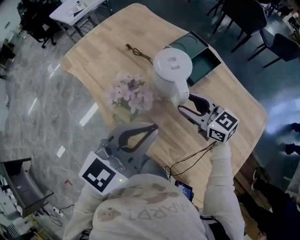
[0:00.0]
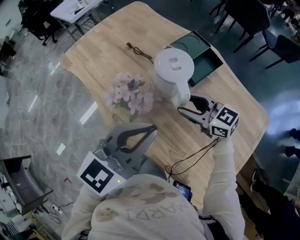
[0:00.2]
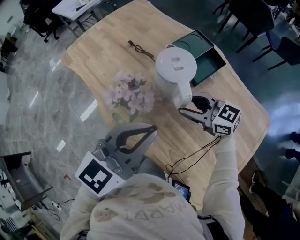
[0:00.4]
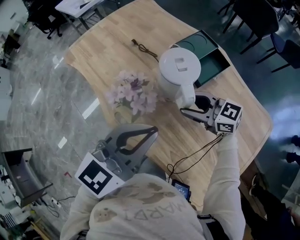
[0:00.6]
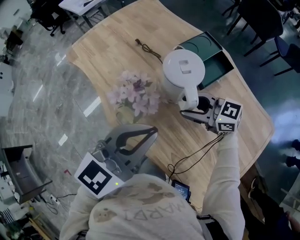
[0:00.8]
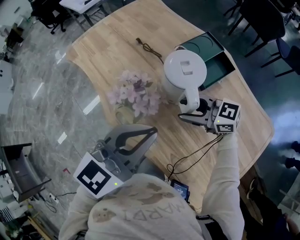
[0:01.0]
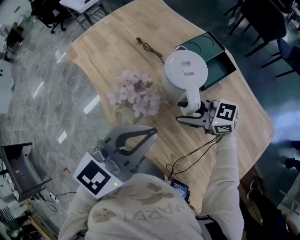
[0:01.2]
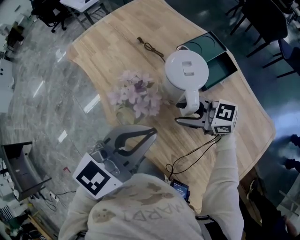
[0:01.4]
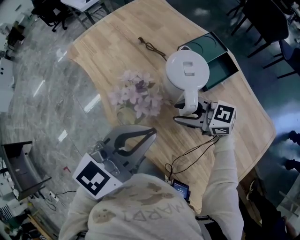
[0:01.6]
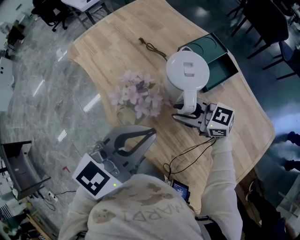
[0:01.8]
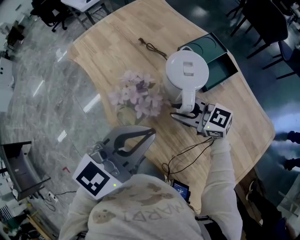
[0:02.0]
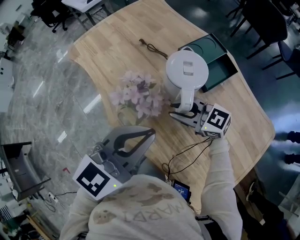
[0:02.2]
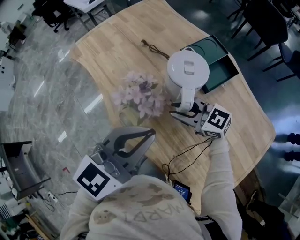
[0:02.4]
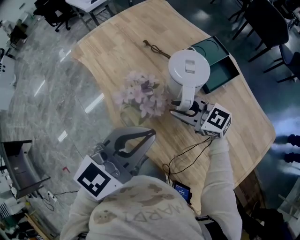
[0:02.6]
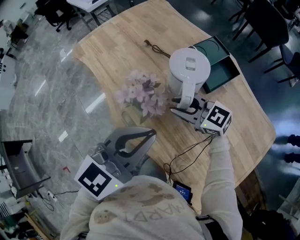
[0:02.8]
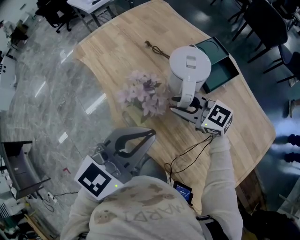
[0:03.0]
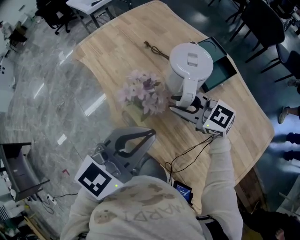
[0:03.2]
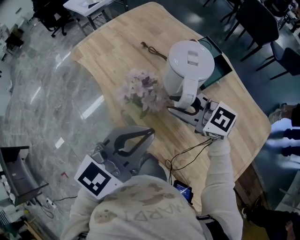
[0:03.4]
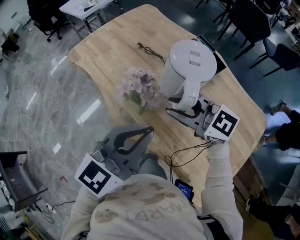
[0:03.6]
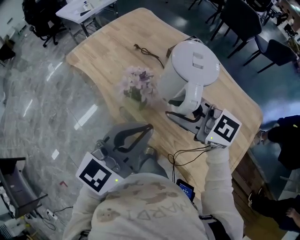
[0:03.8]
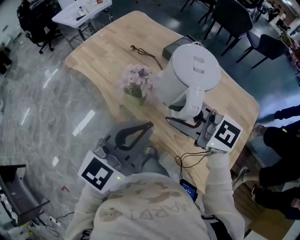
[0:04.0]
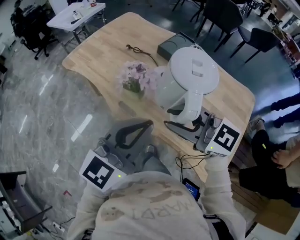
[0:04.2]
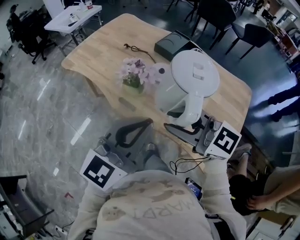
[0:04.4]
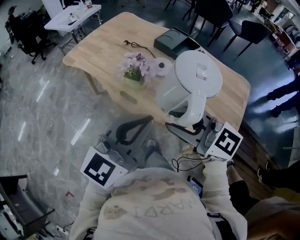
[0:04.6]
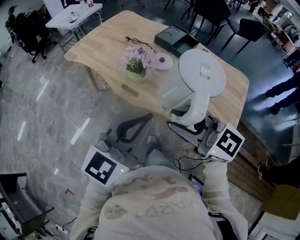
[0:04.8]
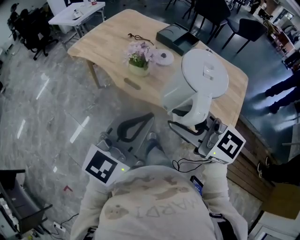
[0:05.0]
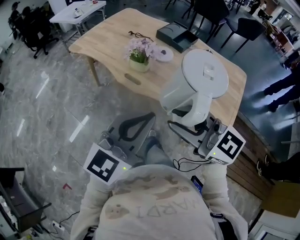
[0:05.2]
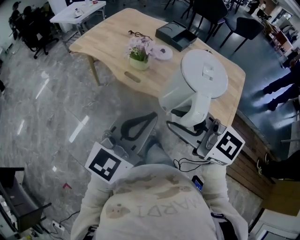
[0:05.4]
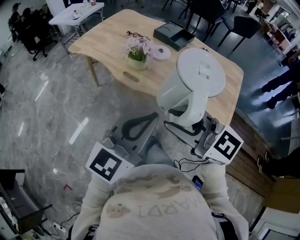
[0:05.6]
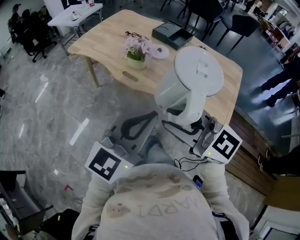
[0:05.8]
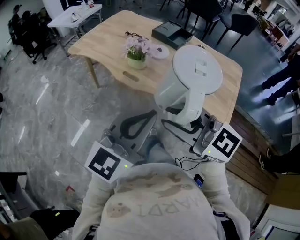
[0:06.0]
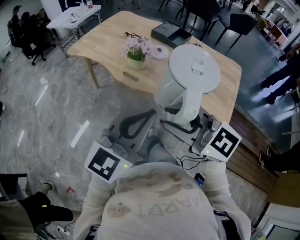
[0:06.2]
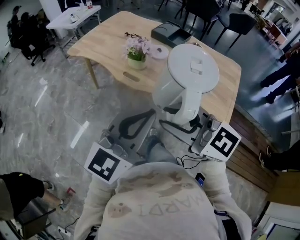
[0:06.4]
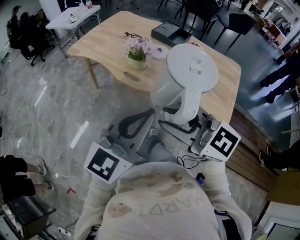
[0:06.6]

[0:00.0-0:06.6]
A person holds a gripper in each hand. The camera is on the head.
0:00.0 to 0:01.6: The right gripper changes place by some 5 cm, and changes its angle by about 30 degrees.
0:01.6 to 0:03.2: The right gripper moves upward, some 5 cm.
0:03.2 to 0:05.0: The right gripper travels backward by some 40 cm, and swivels roughly 20 degrees. Meanwhile the left gripper is displaced backward and to the left by about 30 cm.
0:05.0 to 0:06.6: The left gripper heads backward, covering roughly 5 cm. Meanwhile the right gripper is displaced backward and to the left by approximately 10 cm.

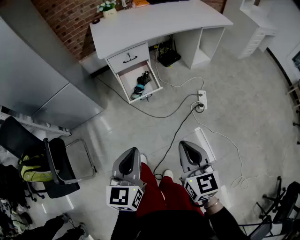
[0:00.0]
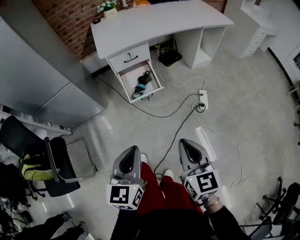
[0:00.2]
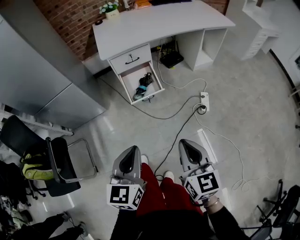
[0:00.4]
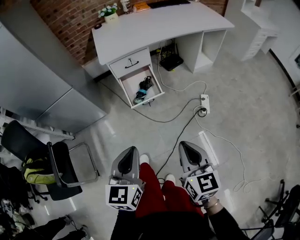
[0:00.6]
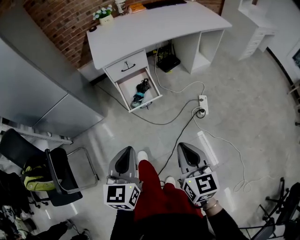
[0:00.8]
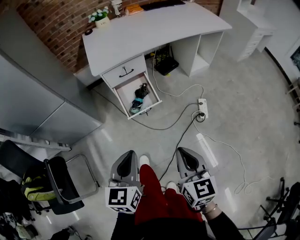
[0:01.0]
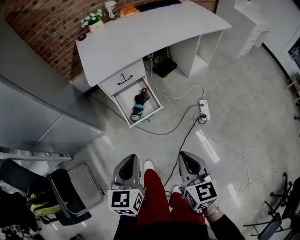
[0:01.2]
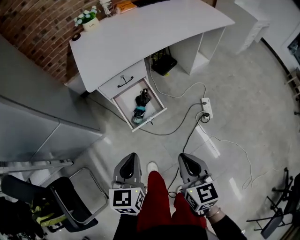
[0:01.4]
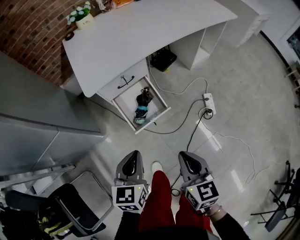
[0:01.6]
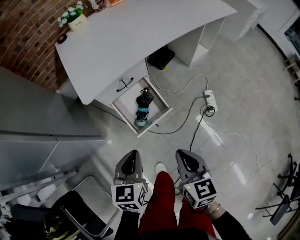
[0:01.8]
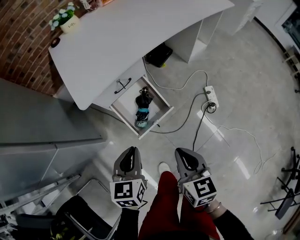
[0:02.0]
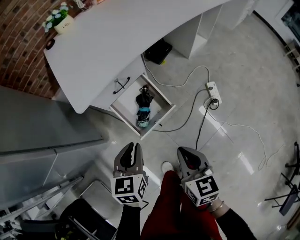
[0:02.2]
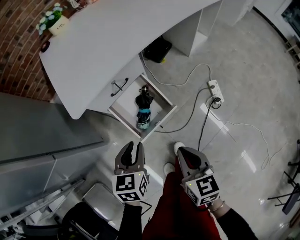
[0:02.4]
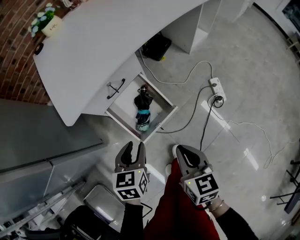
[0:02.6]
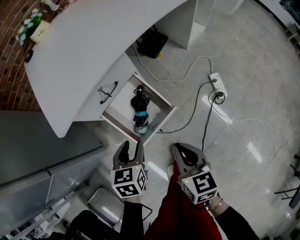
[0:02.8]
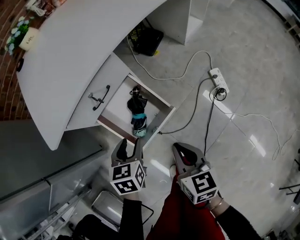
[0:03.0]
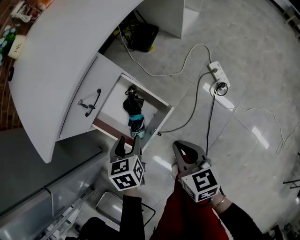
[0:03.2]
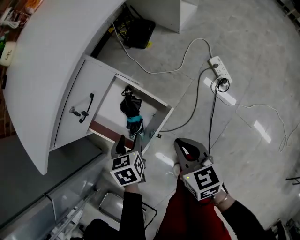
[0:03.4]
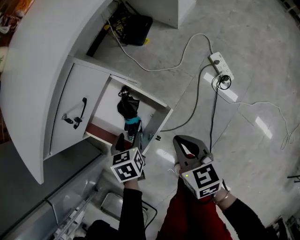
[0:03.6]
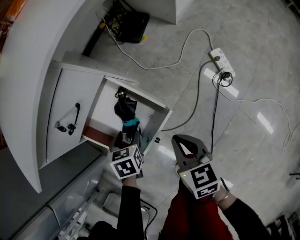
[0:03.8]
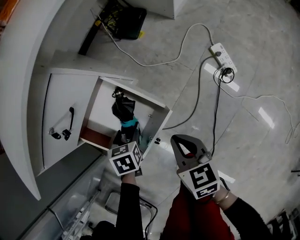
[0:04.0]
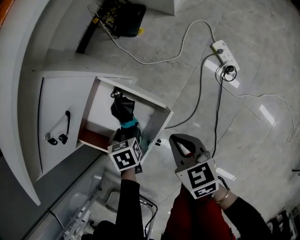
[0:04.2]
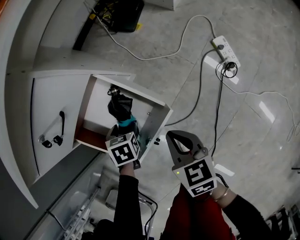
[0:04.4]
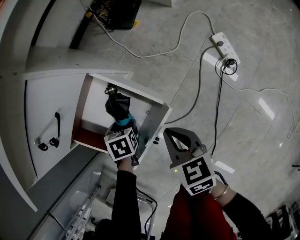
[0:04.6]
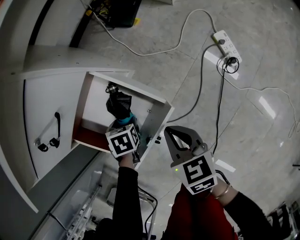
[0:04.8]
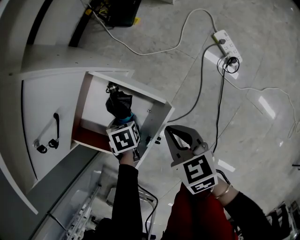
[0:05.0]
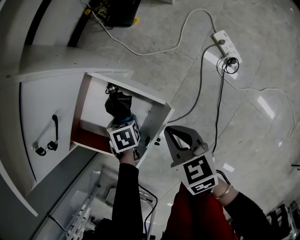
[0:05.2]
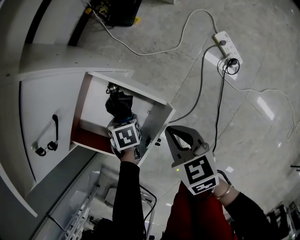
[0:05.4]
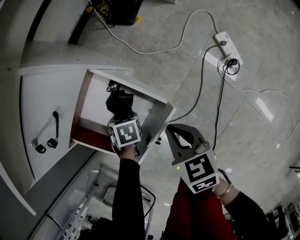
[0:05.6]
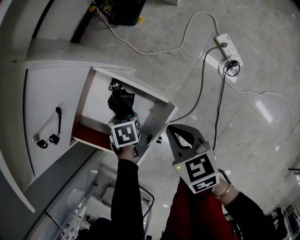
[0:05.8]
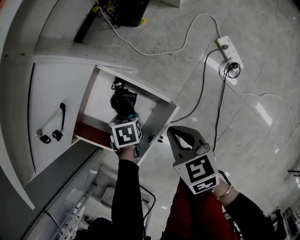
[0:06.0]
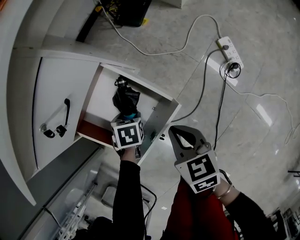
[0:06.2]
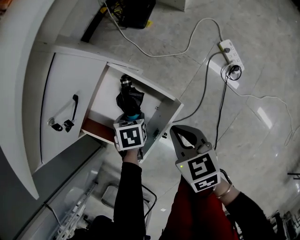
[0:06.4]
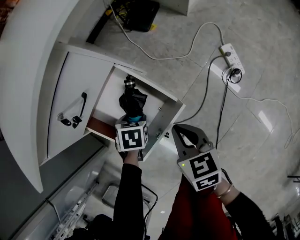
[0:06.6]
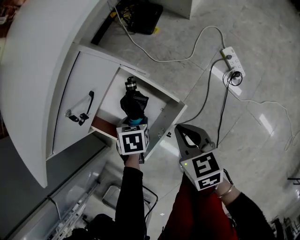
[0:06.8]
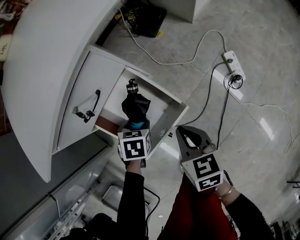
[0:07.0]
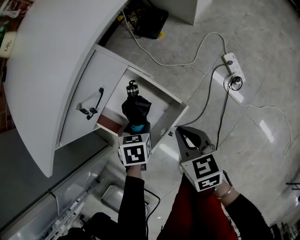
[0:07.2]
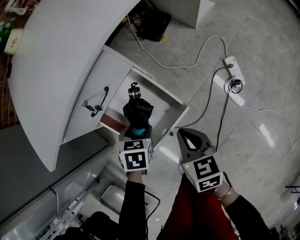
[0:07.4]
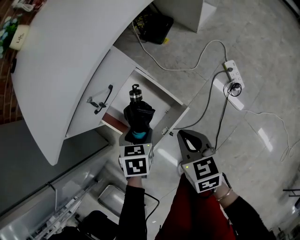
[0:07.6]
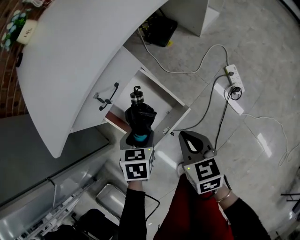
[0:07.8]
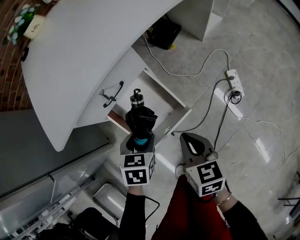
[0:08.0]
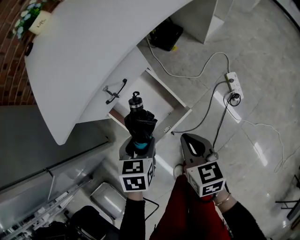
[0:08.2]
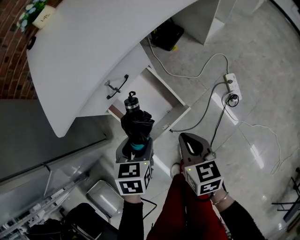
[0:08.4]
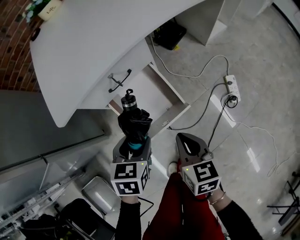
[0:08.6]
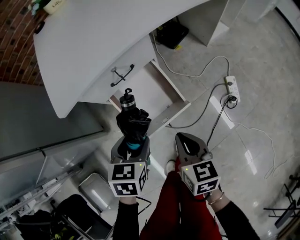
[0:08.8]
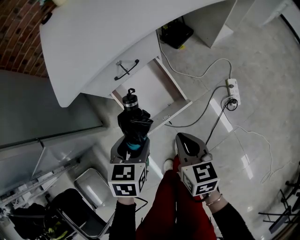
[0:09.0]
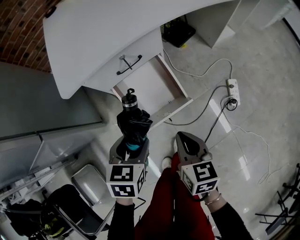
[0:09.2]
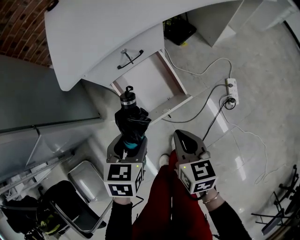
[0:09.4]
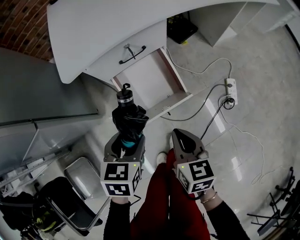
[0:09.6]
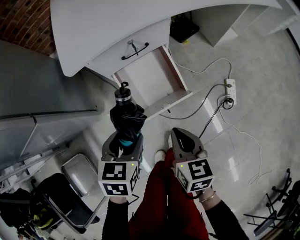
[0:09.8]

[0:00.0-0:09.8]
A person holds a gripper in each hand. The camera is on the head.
0:00.0 to 0:01.4: Both grippers move forward, approximately 20 cm.
0:01.4 to 0:02.8: The grippers both shift downward and forward by about 30 cm. The left gripper rotates some 20 degrees, and opens.
0:02.8 to 0:04.2: Both grippers move downward and forward, some 25 cm. The left gripper changes its angle by some 30 degrees.
0:04.2 to 0:05.6: The left gripper moves downward, roughly 10 cm.
0:05.6 to 0:07.0: The left gripper shifts approximately 15 cm upward; the right gripper goes some 5 cm upward.
0:07.0 to 0:08.4: The right gripper shifts about 10 cm upward. Meanwhile the left gripper is displaced upward and backward by roughly 20 cm.
0:08.4 to 0:09.8: Both grippers travel together backward and to the left, some 10 cm.

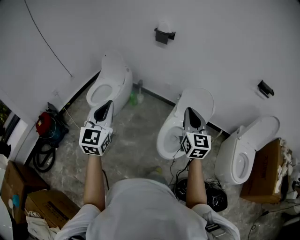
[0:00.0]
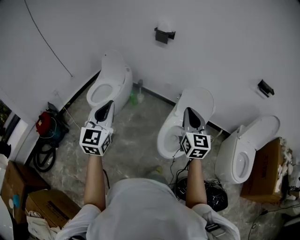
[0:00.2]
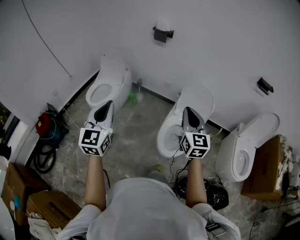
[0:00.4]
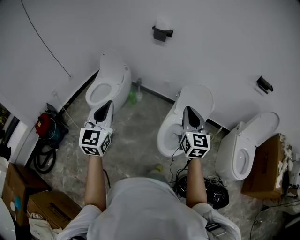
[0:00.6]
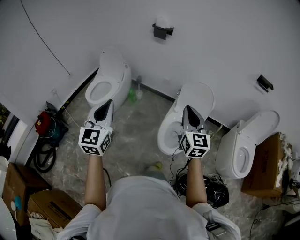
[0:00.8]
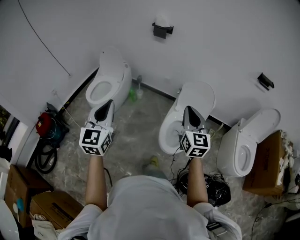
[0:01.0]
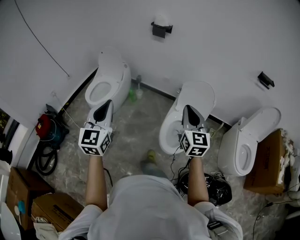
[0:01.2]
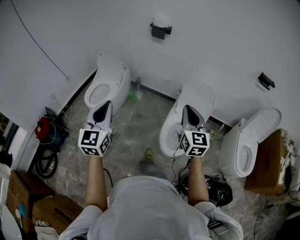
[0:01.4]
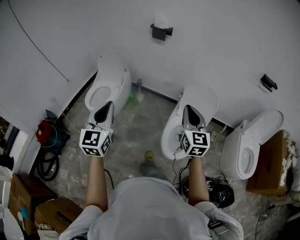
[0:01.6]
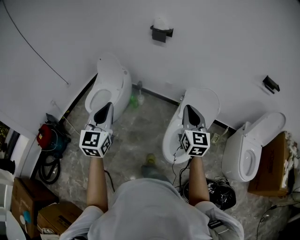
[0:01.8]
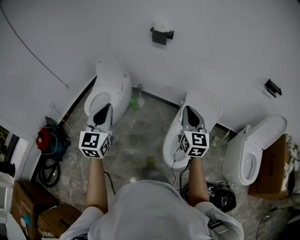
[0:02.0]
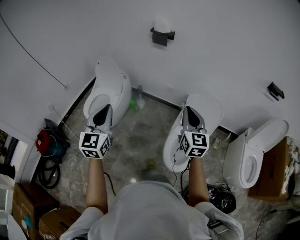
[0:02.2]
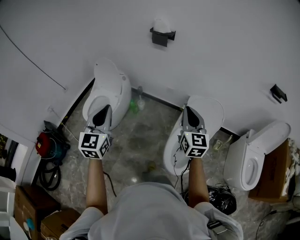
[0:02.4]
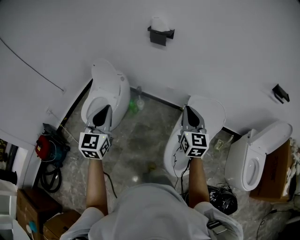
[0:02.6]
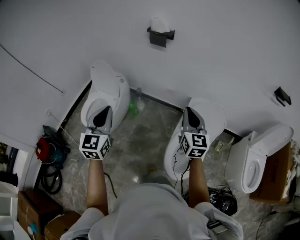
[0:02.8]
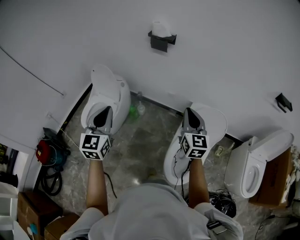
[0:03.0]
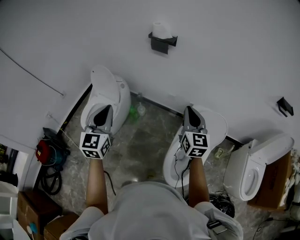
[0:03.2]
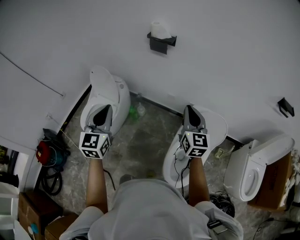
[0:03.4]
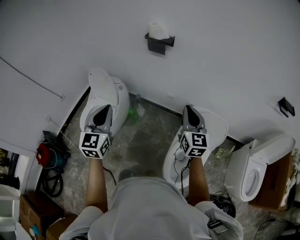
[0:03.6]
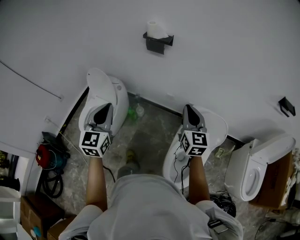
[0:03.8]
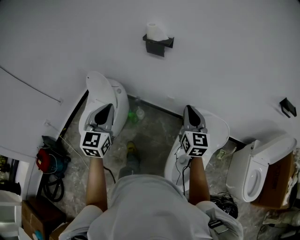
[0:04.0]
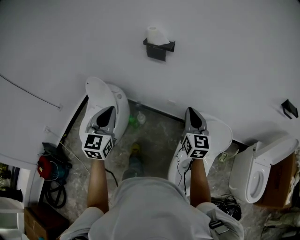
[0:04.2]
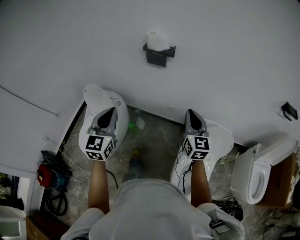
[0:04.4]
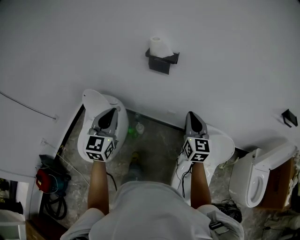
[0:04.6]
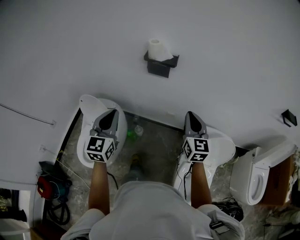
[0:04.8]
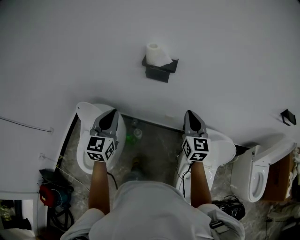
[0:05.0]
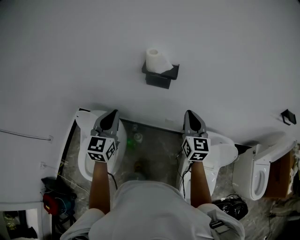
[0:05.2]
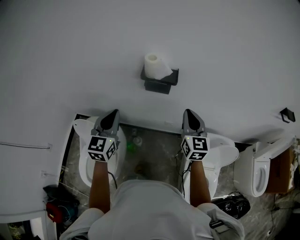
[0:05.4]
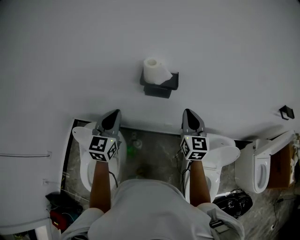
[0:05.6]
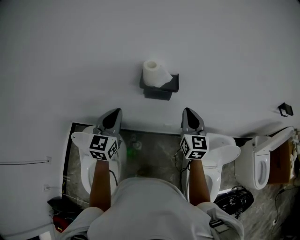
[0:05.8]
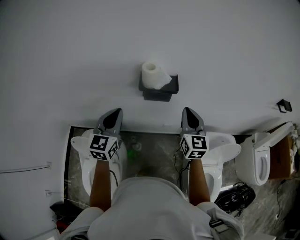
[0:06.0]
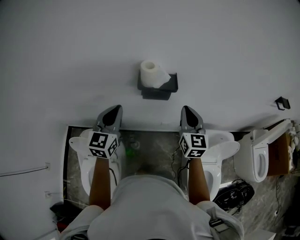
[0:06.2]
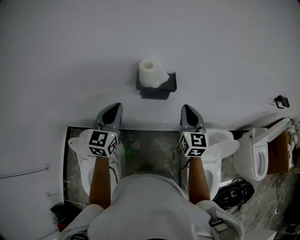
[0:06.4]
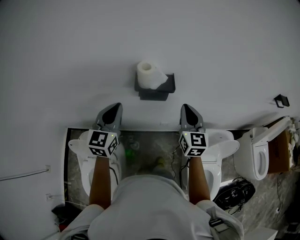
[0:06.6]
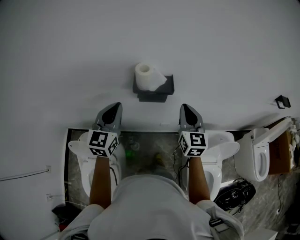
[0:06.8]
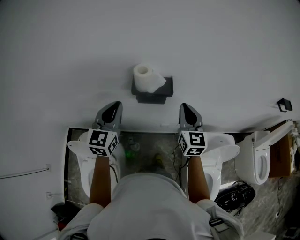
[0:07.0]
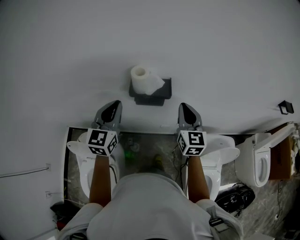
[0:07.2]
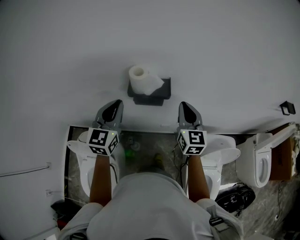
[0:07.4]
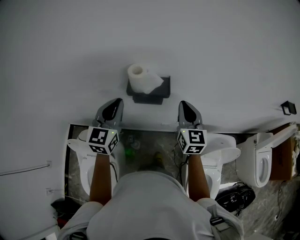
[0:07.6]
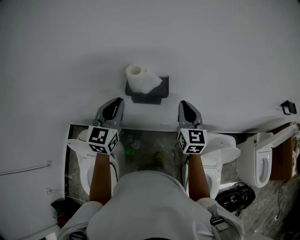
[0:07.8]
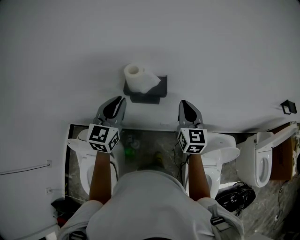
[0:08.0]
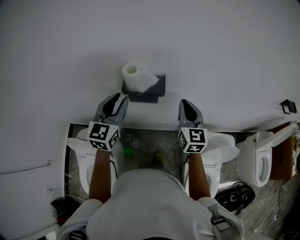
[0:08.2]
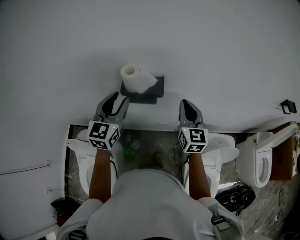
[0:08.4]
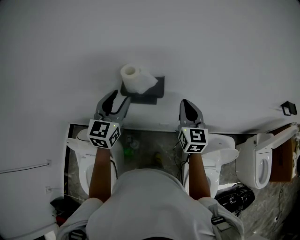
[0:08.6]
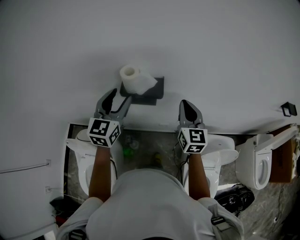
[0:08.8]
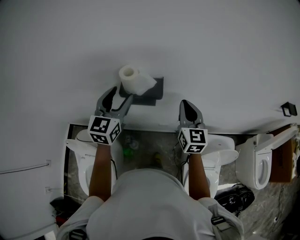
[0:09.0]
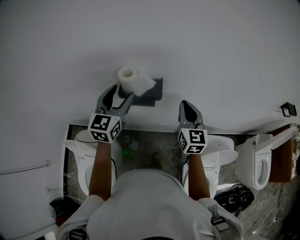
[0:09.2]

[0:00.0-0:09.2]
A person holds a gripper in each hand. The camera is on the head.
0:00.0 to 0:01.6: The grippers both shift forward by approximately 5 cm.
0:01.6 to 0:03.0: The grippers both shift forward by roughly 30 cm.
0:03.0 to 0:04.6: The two grippers go some 25 cm forward.
0:04.6 to 0:06.2: The right gripper moves forward and to the left, approximately 25 cm; the left gripper shifts some 30 cm forward, and changes its angle by some 20 degrees.
0:06.2 to 0:07.6: The grippers both shift forward by roughly 5 cm.
0:07.6 to 0:09.2: The left gripper goes some 5 cm forward, and opens its fingers.
